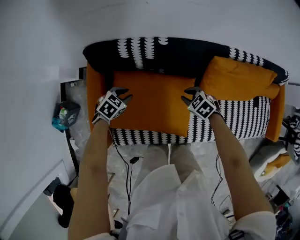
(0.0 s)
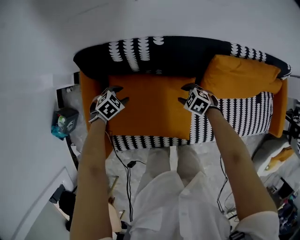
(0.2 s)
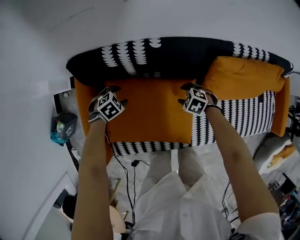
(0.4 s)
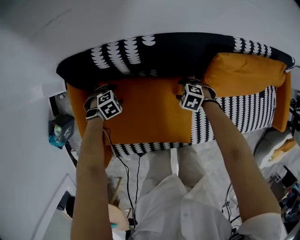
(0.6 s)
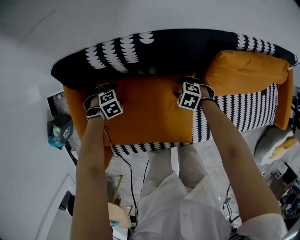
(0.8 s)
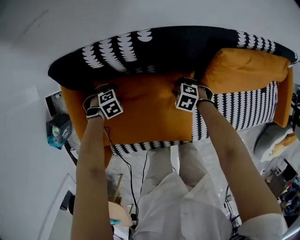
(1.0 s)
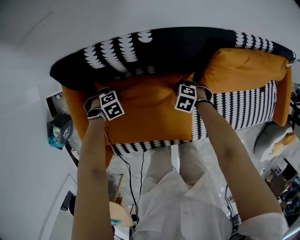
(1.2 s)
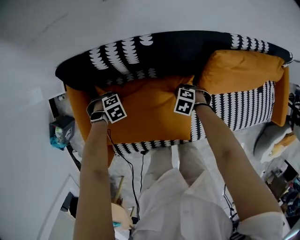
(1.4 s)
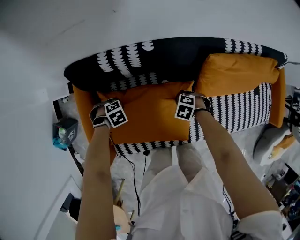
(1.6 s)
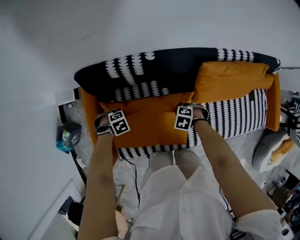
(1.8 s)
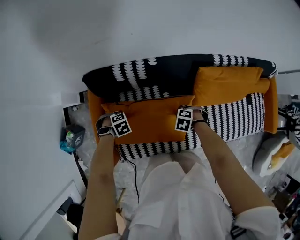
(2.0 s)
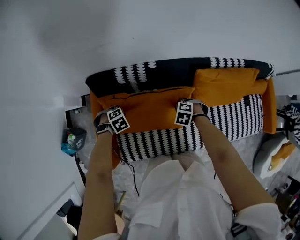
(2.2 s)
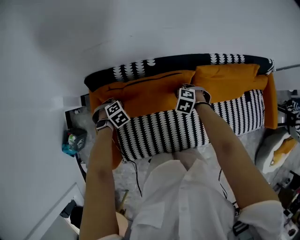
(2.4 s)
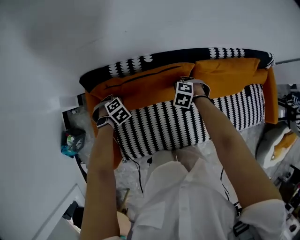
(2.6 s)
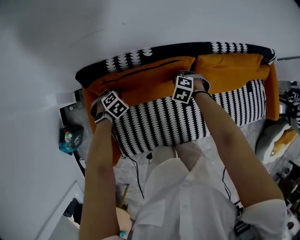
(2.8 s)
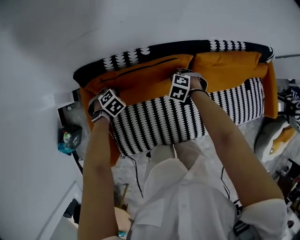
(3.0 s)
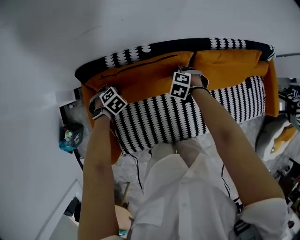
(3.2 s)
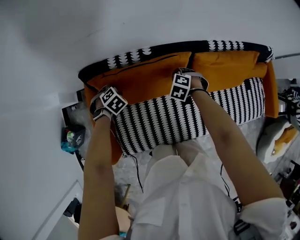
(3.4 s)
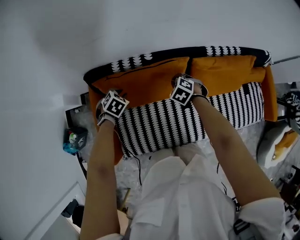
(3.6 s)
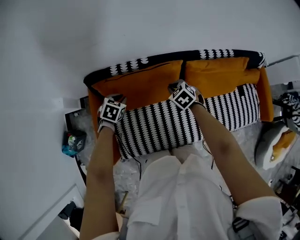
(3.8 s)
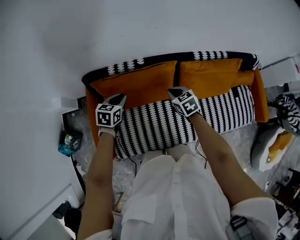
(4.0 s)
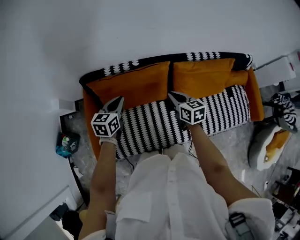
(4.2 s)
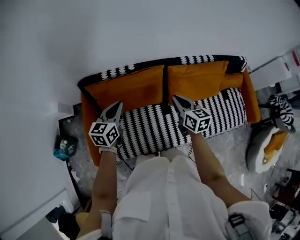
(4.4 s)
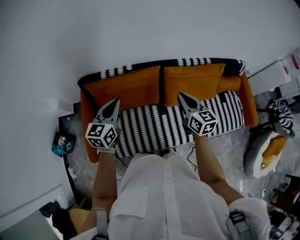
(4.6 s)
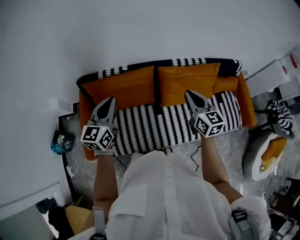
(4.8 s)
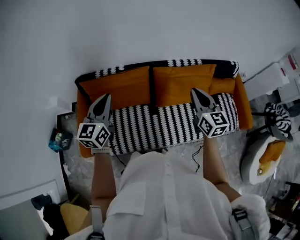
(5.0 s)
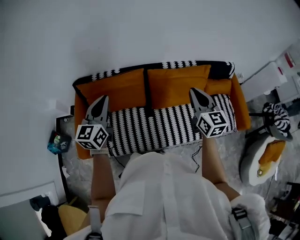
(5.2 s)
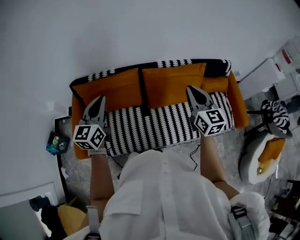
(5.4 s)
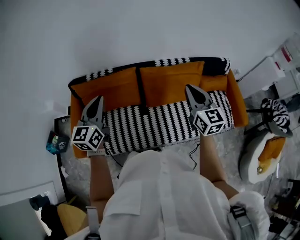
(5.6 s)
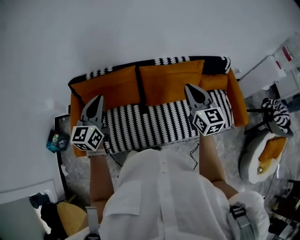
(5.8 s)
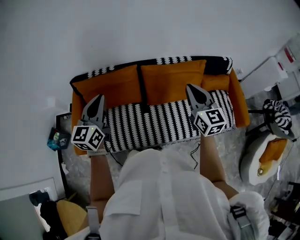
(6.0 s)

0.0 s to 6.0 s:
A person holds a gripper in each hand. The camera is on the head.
0.0 to 1.6 s: Both grippers move downward, some 10 cm. The left gripper rotates approximately 40 degrees, and opens, then closes again. The right gripper swivels some 20 degrees, and closes up.
1.6 to 3.0 s: The two grippers go roughly 10 cm upward. The left gripper turns by about 20 degrees. Meanwhile the right gripper swivels approximately 20 degrees.
3.0 to 4.4 s: Both grippers travel together upward, some 25 cm. The left gripper tips its fingers upward by roughly 60 degrees. Meanwhile the right gripper tilts its fingers about 50 degrees upward.
4.4 to 6.0 s: The right gripper moves to the right and upward, some 30 cm, and swivels about 30 degrees. Meanwhile the left gripper is displaced upward, to the right and backward by roughly 25 cm, and swivels about 20 degrees.

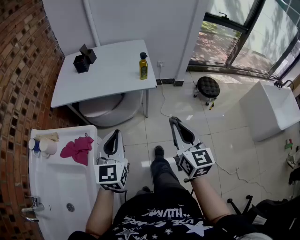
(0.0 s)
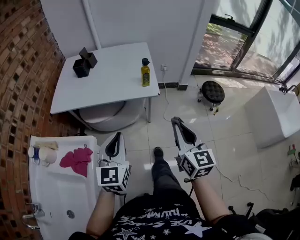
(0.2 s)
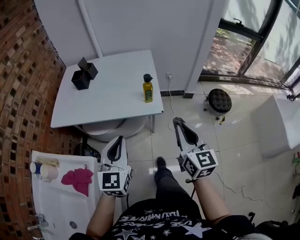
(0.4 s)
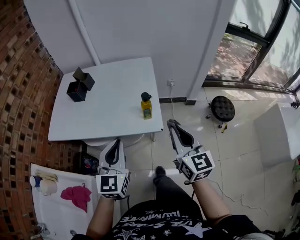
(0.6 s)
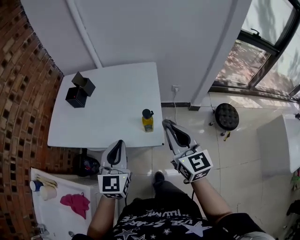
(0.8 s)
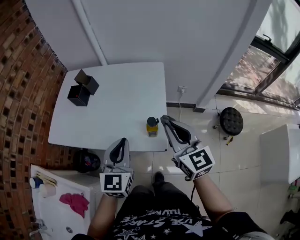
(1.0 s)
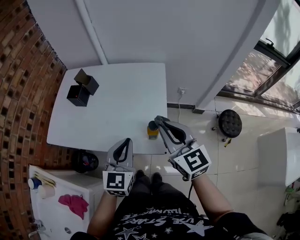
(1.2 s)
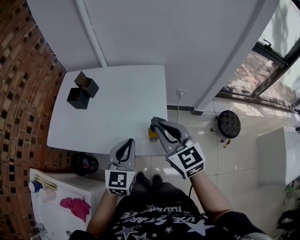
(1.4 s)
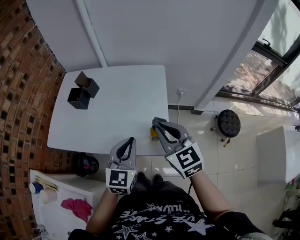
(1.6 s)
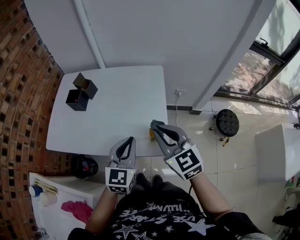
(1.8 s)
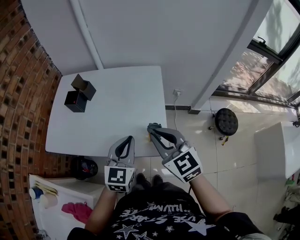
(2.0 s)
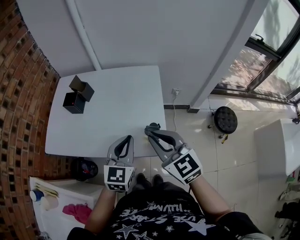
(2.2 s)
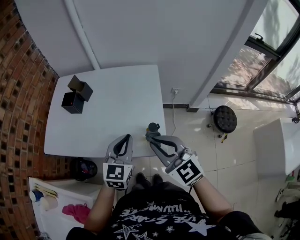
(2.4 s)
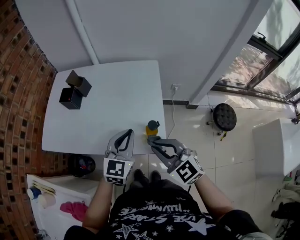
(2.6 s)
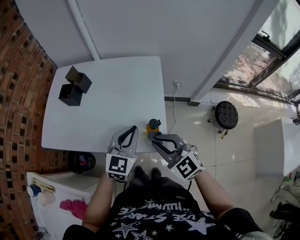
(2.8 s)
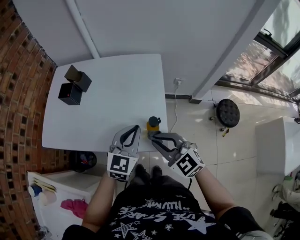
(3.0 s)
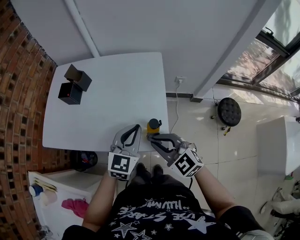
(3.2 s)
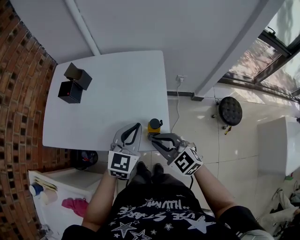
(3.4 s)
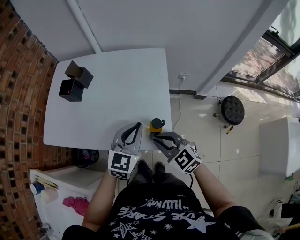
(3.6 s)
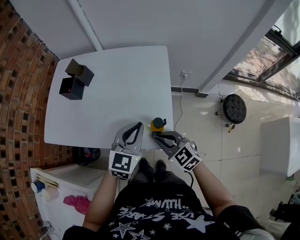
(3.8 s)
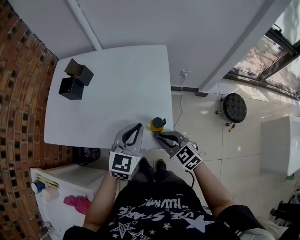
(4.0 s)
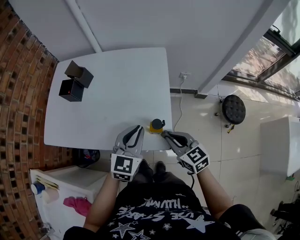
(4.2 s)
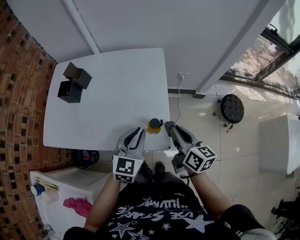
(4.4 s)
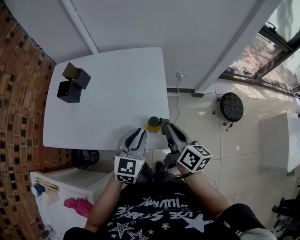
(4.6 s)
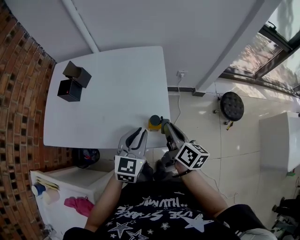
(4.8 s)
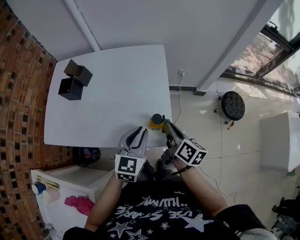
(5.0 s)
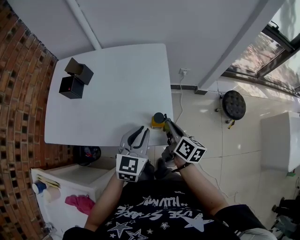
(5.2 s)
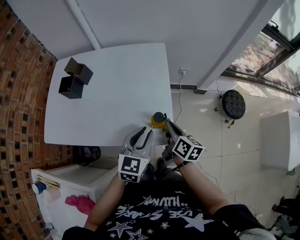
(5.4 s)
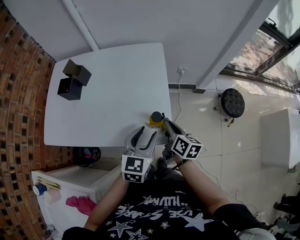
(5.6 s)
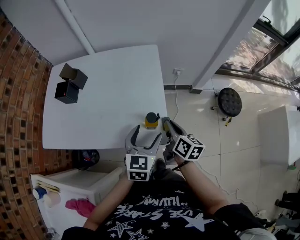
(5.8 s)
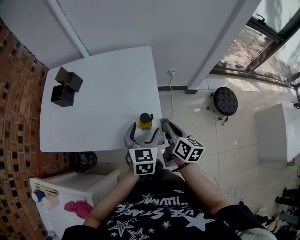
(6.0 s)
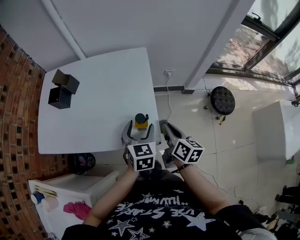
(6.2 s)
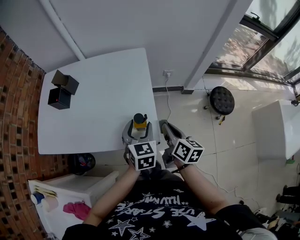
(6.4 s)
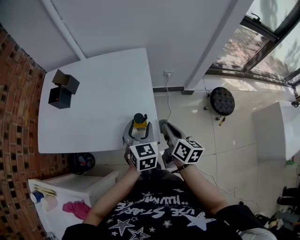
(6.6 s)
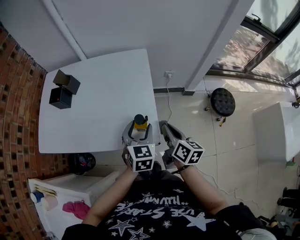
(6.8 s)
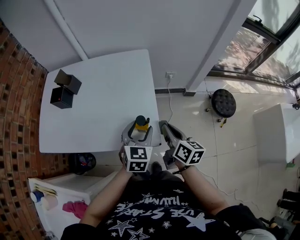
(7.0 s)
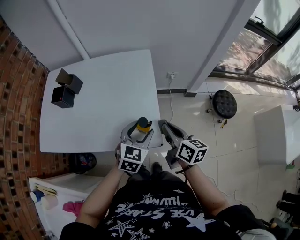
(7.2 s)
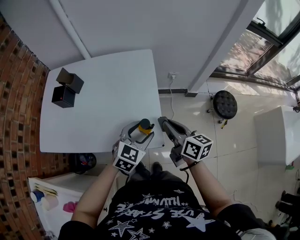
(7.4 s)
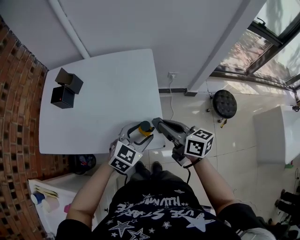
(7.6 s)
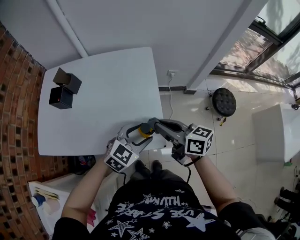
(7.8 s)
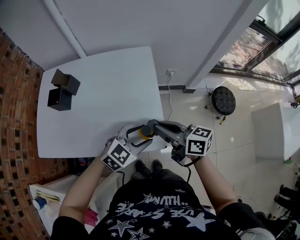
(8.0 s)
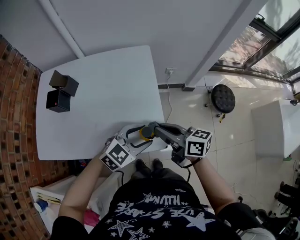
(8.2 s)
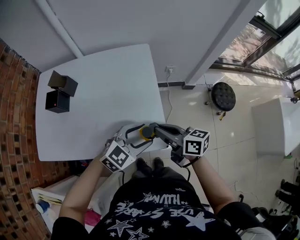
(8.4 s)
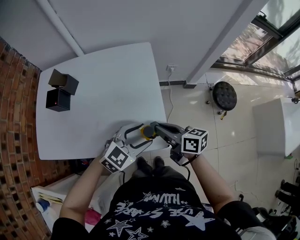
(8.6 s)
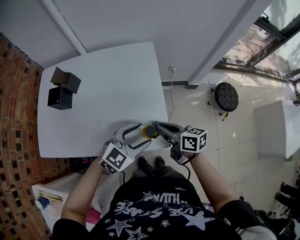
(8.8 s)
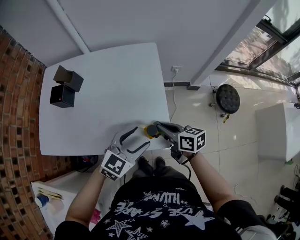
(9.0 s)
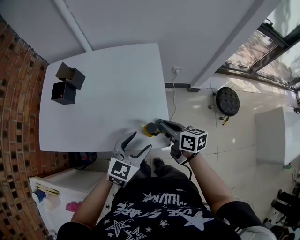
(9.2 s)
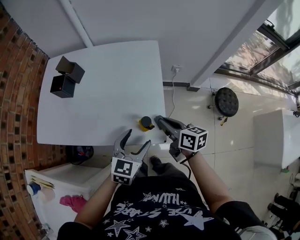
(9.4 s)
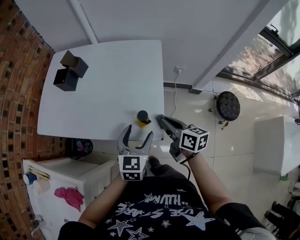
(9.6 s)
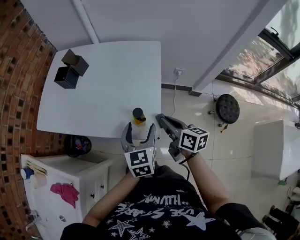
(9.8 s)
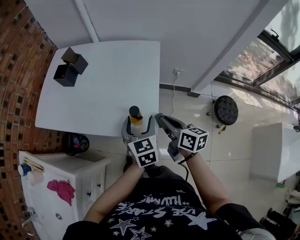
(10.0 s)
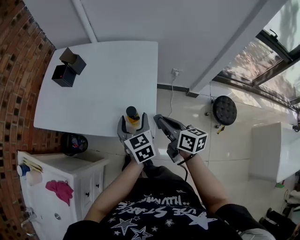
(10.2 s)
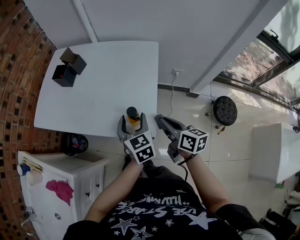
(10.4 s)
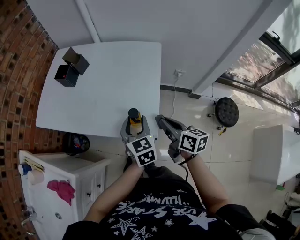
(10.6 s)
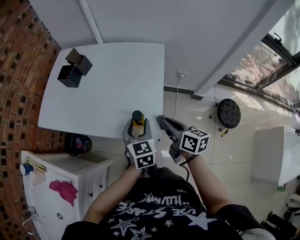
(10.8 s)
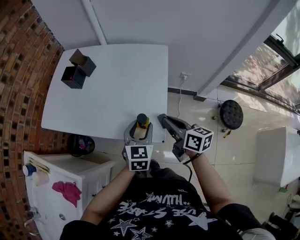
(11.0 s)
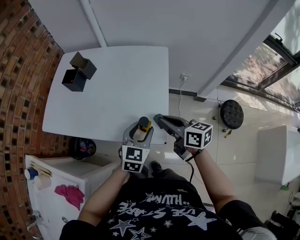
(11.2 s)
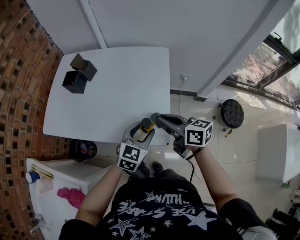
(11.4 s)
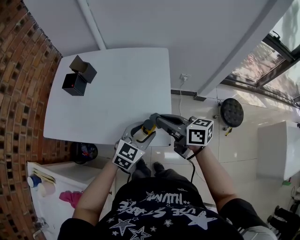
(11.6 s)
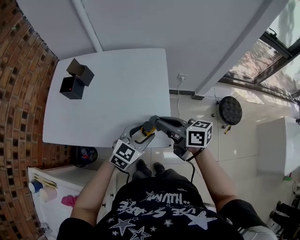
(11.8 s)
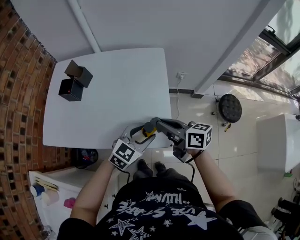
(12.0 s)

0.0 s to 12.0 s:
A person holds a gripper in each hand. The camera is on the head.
0.0 to 1.6 s: Both grippers travel together forward, about 35 cm. The right gripper turns by about 30 degrees.
1.6 to 3.0 s: The right gripper goes roughly 10 cm downward, and changes its angle by some 20 degrees. Meanwhile the left gripper changes place by roughly 5 cm.
3.0 to 4.4 s: The right gripper is displaced to the right by roughly 10 cm, moves roughly 10 cm downward and comes back, and rotates around the line of its fingers by approximately 60 degrees, clockwise from behind.
4.4 to 6.0 s: The right gripper heads downward, covering approximately 5 cm; the left gripper ends up about 5 cm from where it was, and opens.
6.0 to 7.6 s: The left gripper turns by about 40 degrees, while the right gripper is displaced upward by roughly 5 cm, and rotates some 30 degrees.
7.6 to 9.0 s: The right gripper moves downward, some 10 cm.
9.0 to 10.4 s: The left gripper swivels approximately 70 degrees; the right gripper changes place by approximately 10 cm.
10.4 to 12.0 s: The right gripper ends up some 10 cm from where it was. The left gripper rotates about 70 degrees.

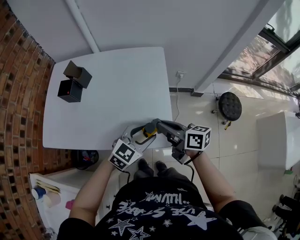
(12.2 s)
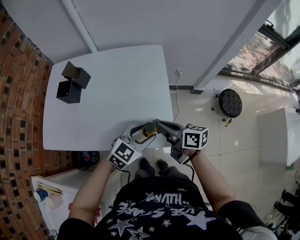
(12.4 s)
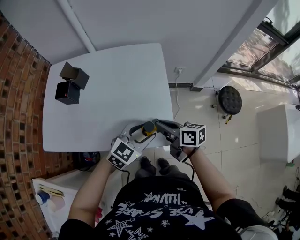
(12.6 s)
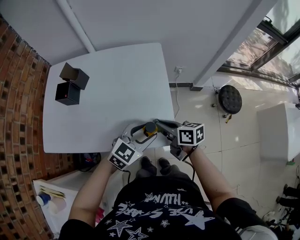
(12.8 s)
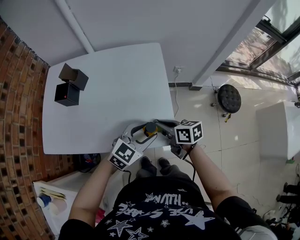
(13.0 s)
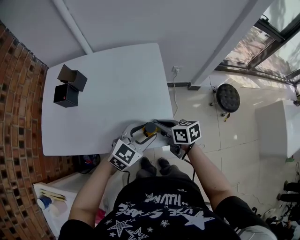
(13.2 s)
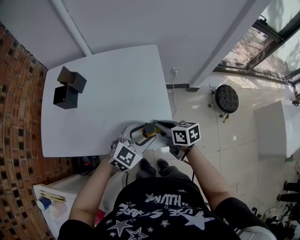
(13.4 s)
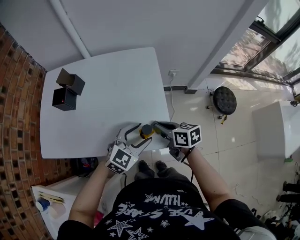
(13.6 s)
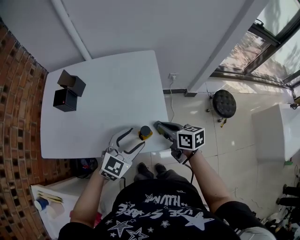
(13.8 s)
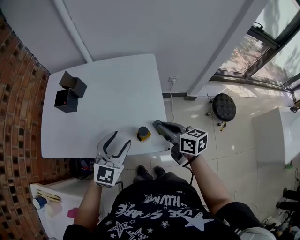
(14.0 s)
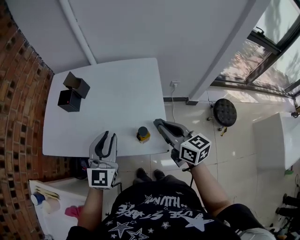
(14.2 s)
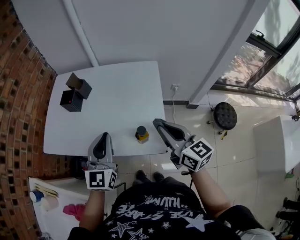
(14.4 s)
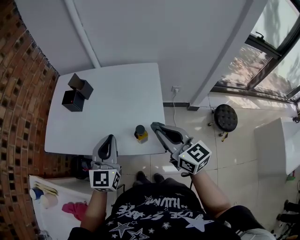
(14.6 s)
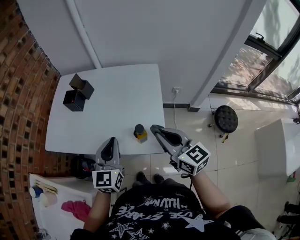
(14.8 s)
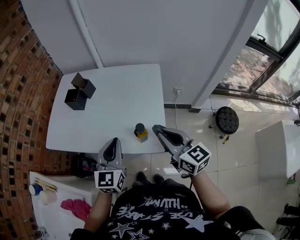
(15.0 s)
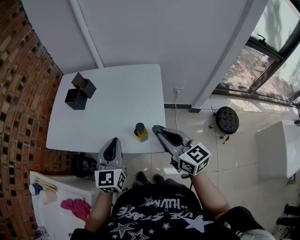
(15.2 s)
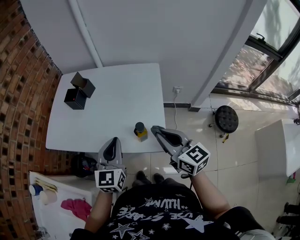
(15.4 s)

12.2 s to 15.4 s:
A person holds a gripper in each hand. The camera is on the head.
12.2 to 13.8 s: The left gripper shifts by about 5 cm.
13.8 to 15.4 s: The right gripper is displaced upward and backward by approximately 15 cm, and changes its angle by approximately 30 degrees, while the left gripper shifts roughly 10 cm upward and to the left, changes its angle by roughly 50 degrees, and closes.

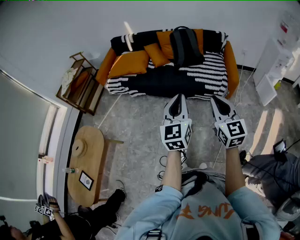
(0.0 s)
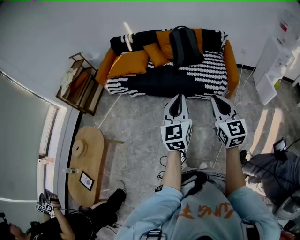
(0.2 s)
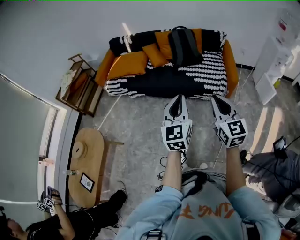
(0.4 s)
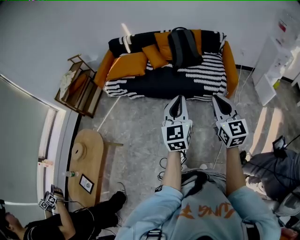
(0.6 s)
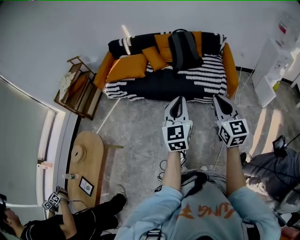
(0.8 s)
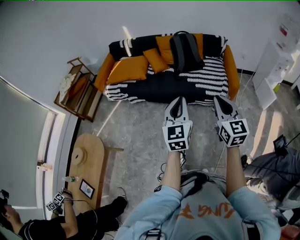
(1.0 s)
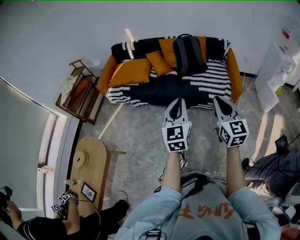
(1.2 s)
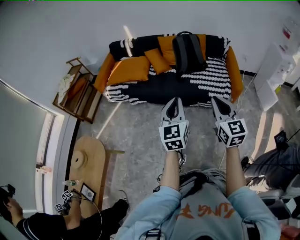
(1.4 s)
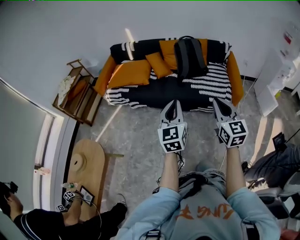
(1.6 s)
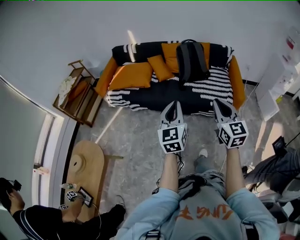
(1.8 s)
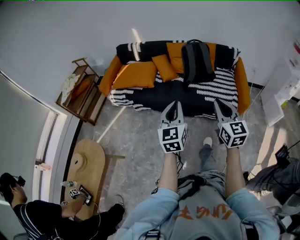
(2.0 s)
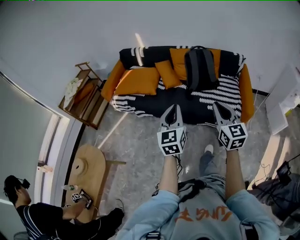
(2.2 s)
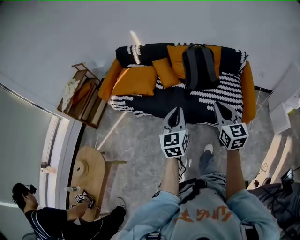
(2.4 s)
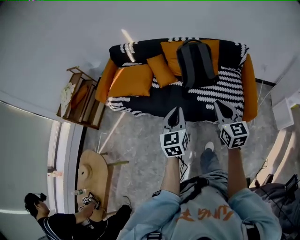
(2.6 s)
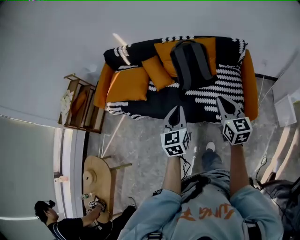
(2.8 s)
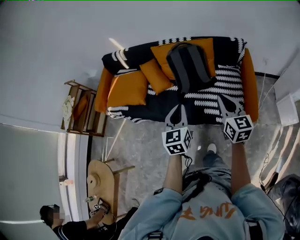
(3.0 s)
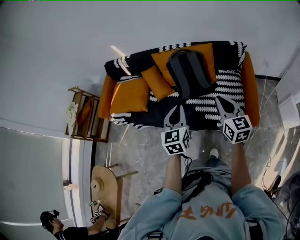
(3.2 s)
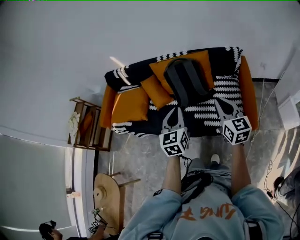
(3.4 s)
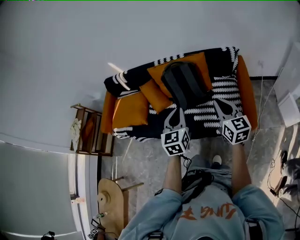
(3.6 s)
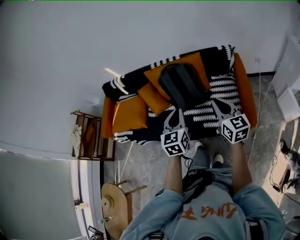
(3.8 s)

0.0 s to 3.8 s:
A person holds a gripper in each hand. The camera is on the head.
0.0 to 1.2 s: Both grippers move forward, some 5 cm.
1.2 to 2.6 s: Both grippers move forward, some 30 cm.
2.6 to 3.8 s: The left gripper moves forward and to the right, about 25 cm. Meanwhile the right gripper travels to the right and forward by some 20 cm.
